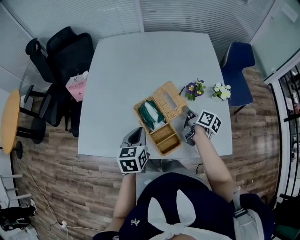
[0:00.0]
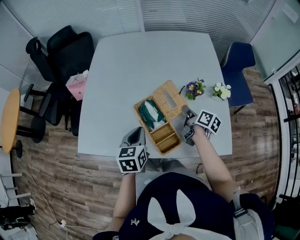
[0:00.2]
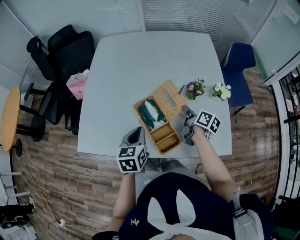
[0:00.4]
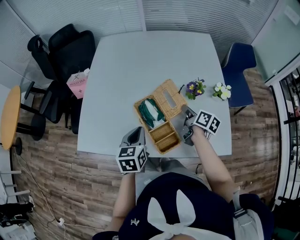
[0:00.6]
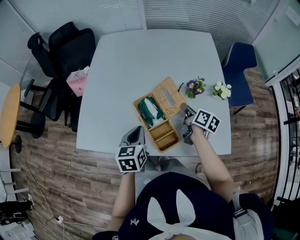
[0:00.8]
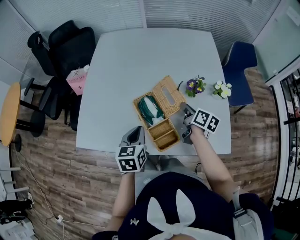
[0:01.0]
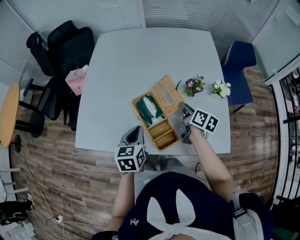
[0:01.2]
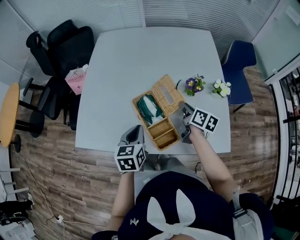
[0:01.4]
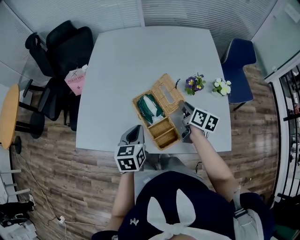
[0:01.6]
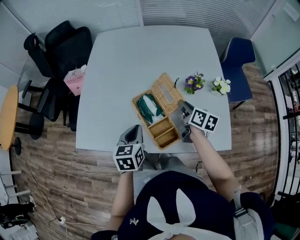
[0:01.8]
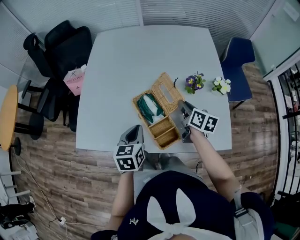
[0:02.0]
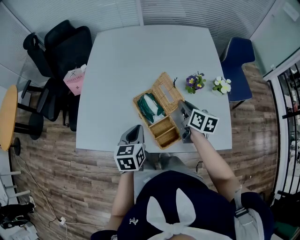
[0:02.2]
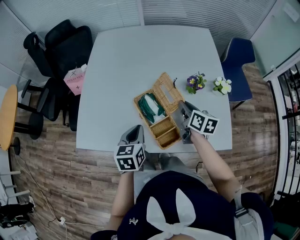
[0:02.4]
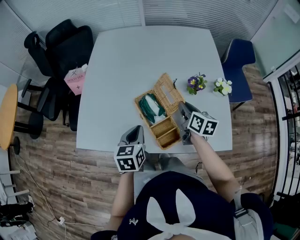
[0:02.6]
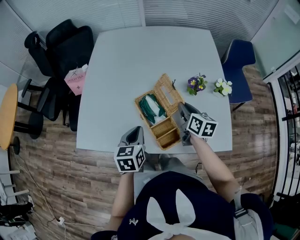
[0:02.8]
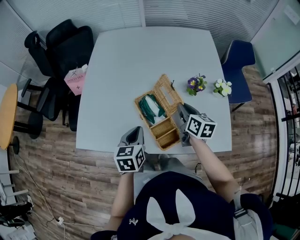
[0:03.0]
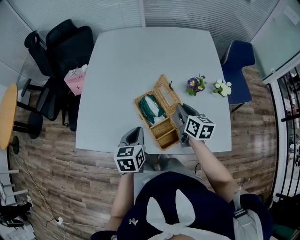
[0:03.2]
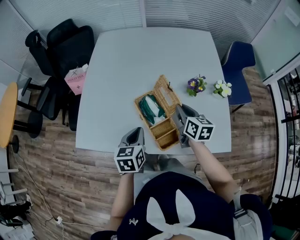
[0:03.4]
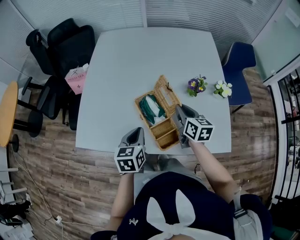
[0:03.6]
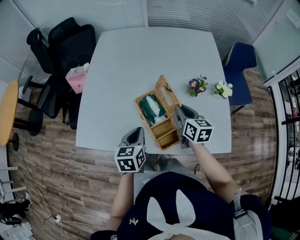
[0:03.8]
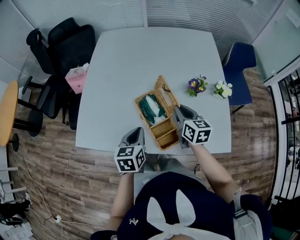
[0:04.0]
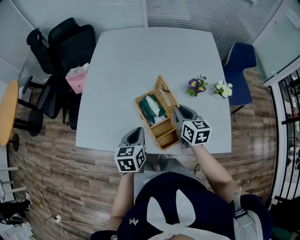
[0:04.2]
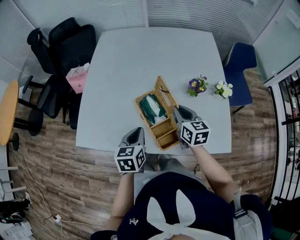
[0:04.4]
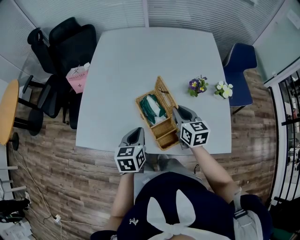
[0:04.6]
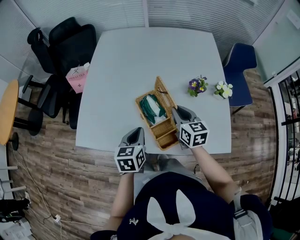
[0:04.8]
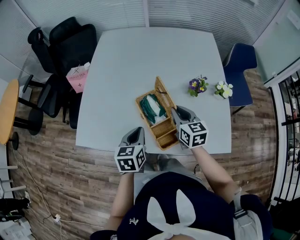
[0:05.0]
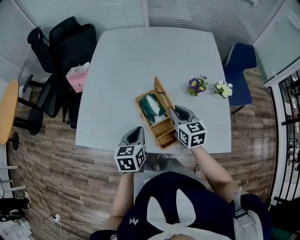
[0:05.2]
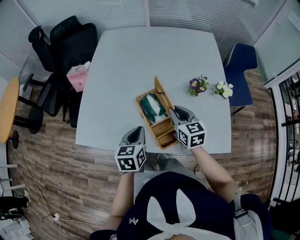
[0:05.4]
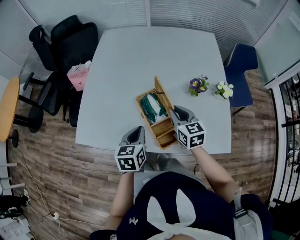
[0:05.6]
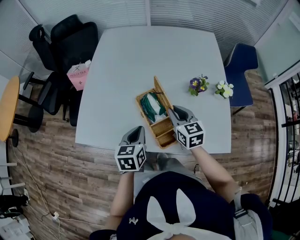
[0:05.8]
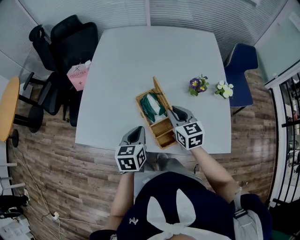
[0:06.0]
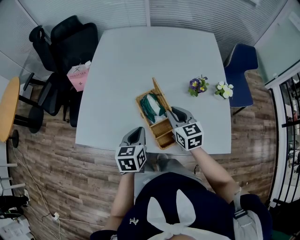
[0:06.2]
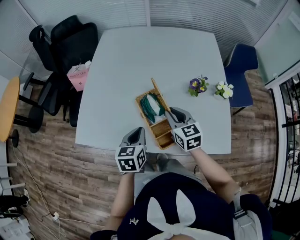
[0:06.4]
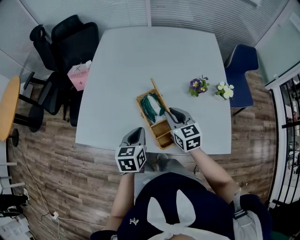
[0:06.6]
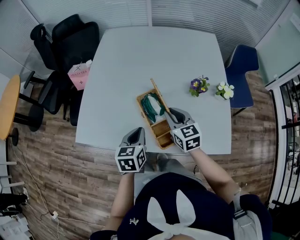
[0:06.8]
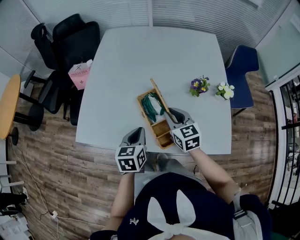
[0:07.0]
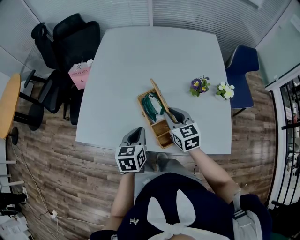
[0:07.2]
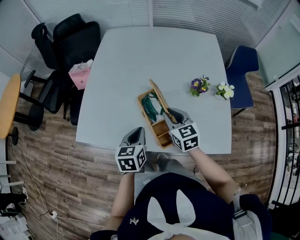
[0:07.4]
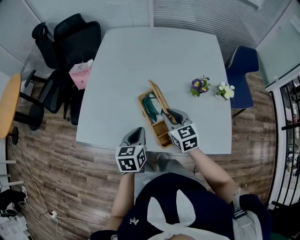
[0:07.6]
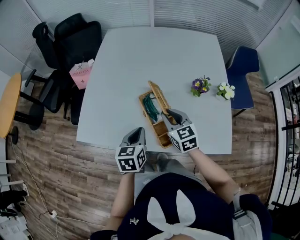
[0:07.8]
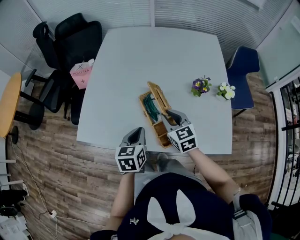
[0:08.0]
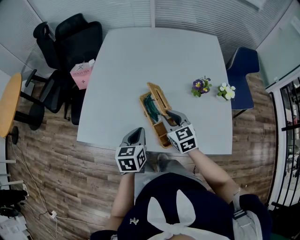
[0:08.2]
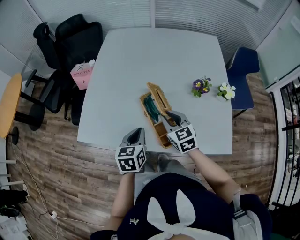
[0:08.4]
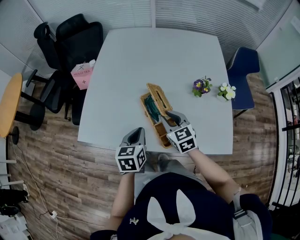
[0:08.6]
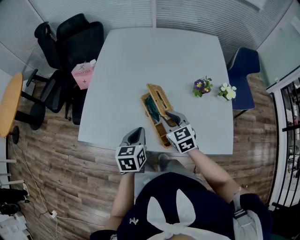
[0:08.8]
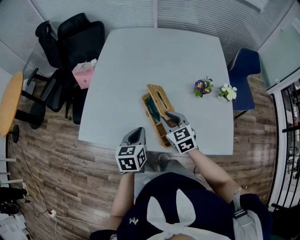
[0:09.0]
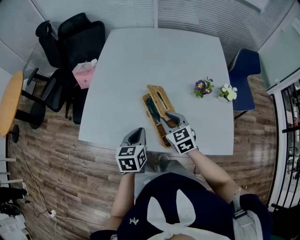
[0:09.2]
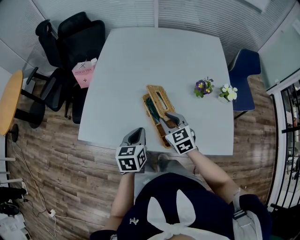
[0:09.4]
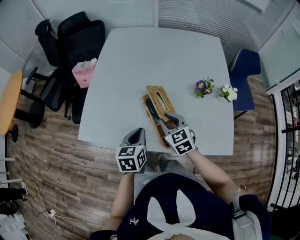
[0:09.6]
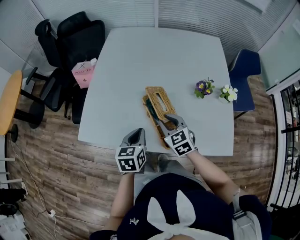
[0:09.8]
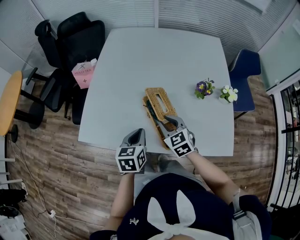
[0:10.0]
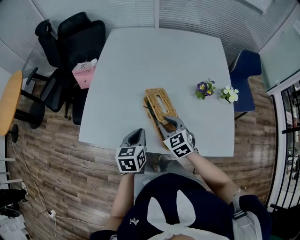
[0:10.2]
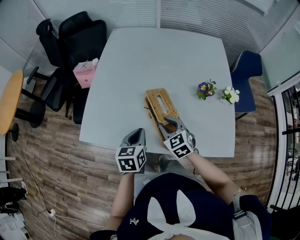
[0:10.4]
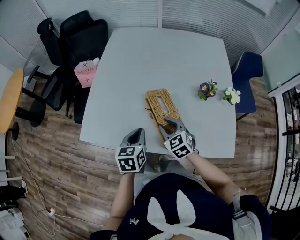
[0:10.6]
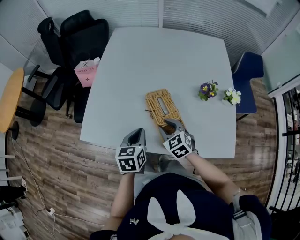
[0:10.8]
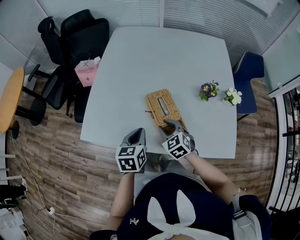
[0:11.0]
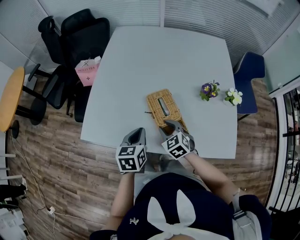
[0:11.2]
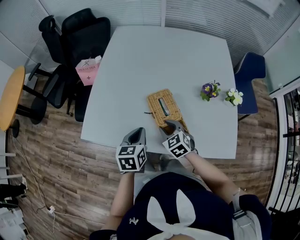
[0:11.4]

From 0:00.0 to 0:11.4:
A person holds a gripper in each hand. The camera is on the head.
From 0:00.0 to 0:01.4: The grippers stay close to where they were, moving slightly.
From 0:01.4 to 0:02.8: The grippers move only a little.
From 0:02.8 to 0:04.2: The grippers move only a little.
From 0:04.2 to 0:05.6: The grippers move only a little.
From 0:05.6 to 0:07.2: There are only small adjustments of the grippers.
From 0:07.2 to 0:08.6: There are only small adjustments of the grippers.
From 0:08.6 to 0:10.0: The grippers move only a little.
From 0:10.0 to 0:11.4: The right gripper moves downward, about 5 cm.

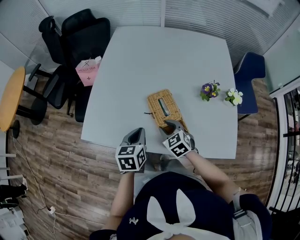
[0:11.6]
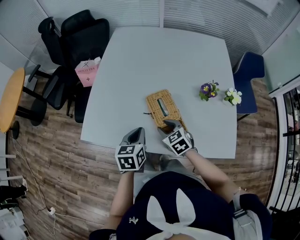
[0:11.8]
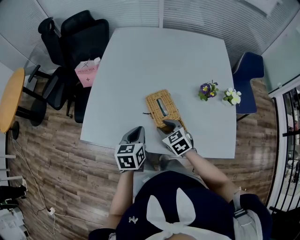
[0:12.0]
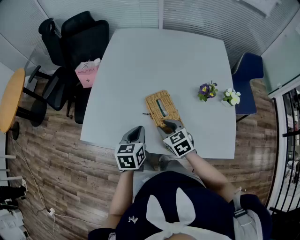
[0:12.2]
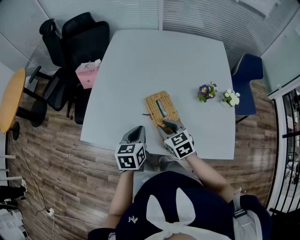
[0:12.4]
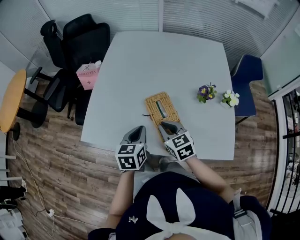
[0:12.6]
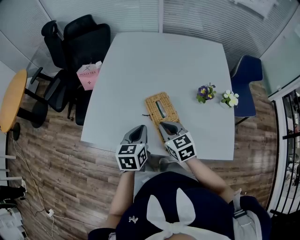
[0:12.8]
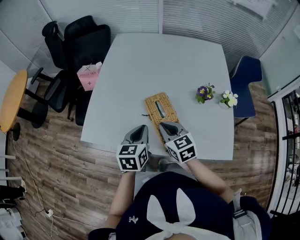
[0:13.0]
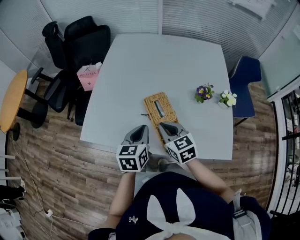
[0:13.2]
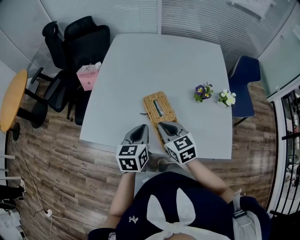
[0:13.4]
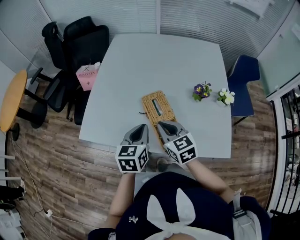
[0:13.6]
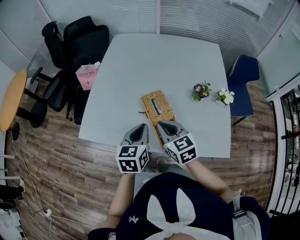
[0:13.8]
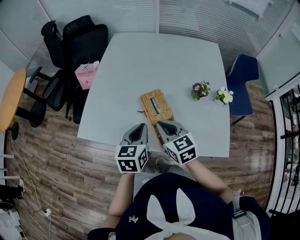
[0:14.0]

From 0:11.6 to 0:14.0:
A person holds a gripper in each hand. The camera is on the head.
From 0:11.6 to 0:12.8: The right gripper heads upward, covering roughly 10 cm, and closes.
From 0:12.8 to 0:14.0: The right gripper changes place by approximately 5 cm.

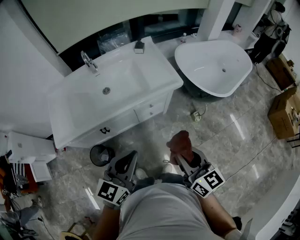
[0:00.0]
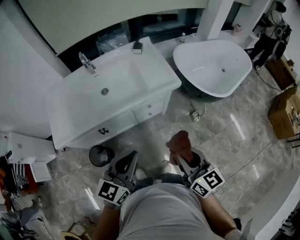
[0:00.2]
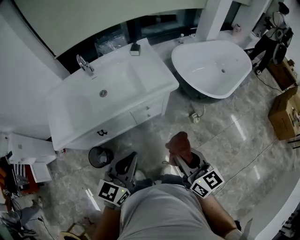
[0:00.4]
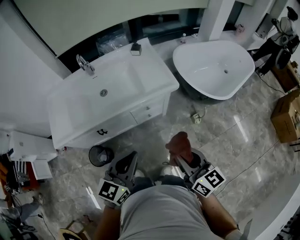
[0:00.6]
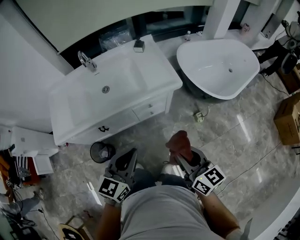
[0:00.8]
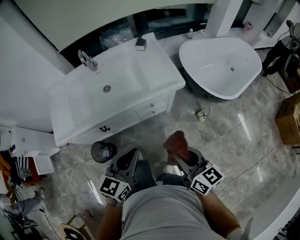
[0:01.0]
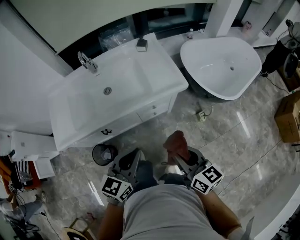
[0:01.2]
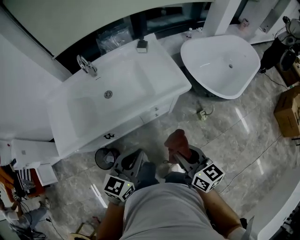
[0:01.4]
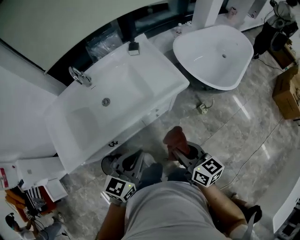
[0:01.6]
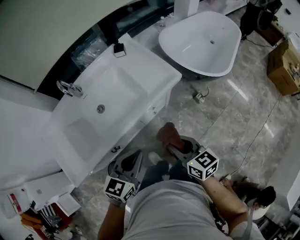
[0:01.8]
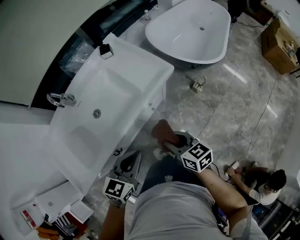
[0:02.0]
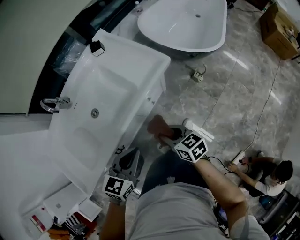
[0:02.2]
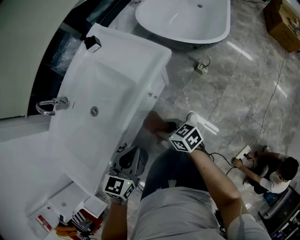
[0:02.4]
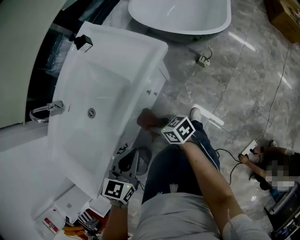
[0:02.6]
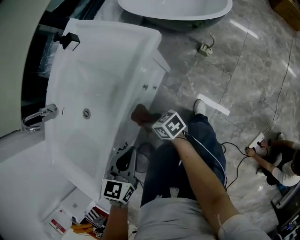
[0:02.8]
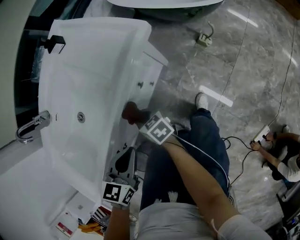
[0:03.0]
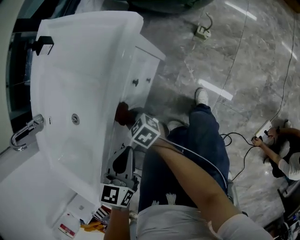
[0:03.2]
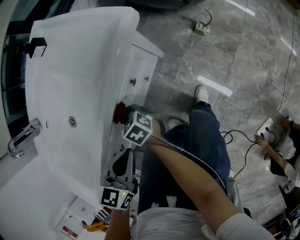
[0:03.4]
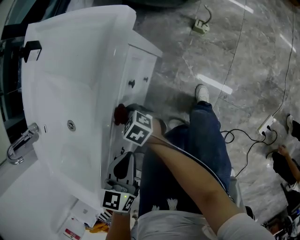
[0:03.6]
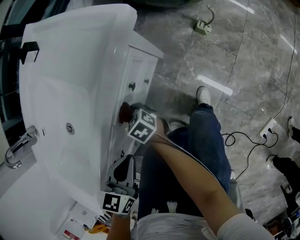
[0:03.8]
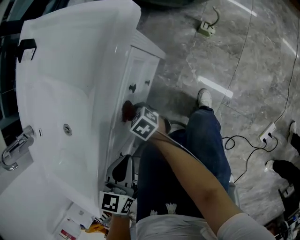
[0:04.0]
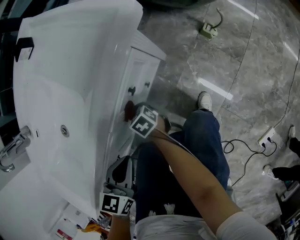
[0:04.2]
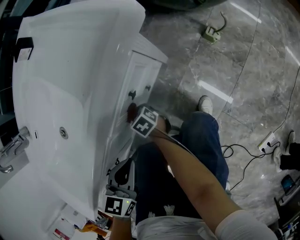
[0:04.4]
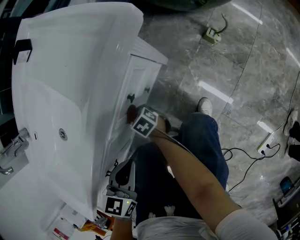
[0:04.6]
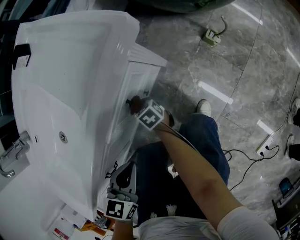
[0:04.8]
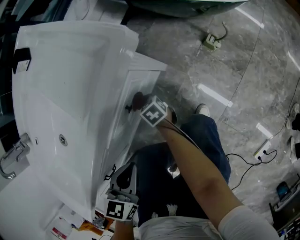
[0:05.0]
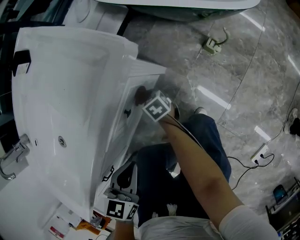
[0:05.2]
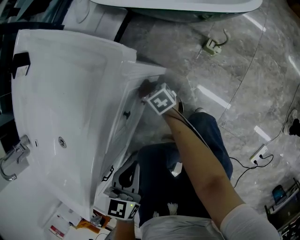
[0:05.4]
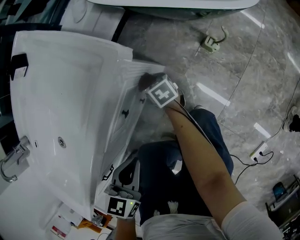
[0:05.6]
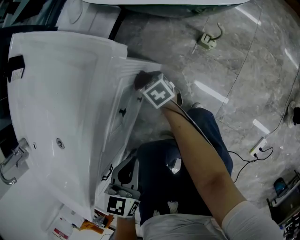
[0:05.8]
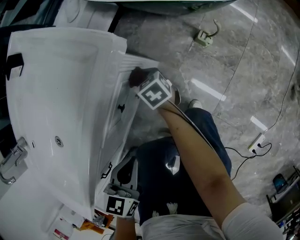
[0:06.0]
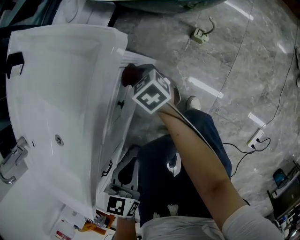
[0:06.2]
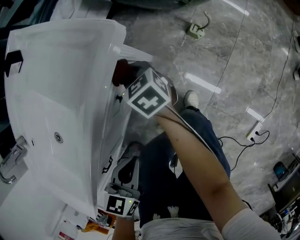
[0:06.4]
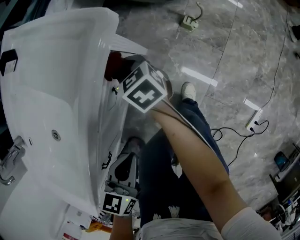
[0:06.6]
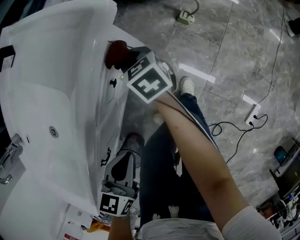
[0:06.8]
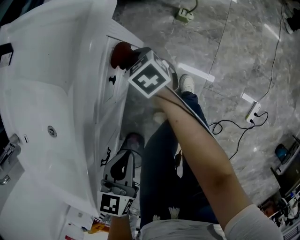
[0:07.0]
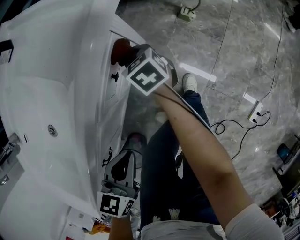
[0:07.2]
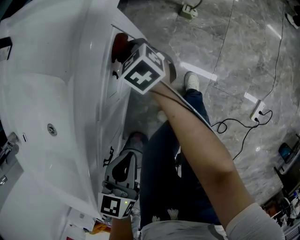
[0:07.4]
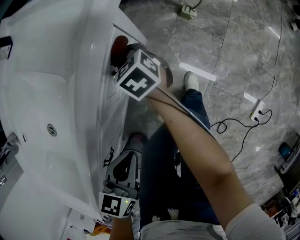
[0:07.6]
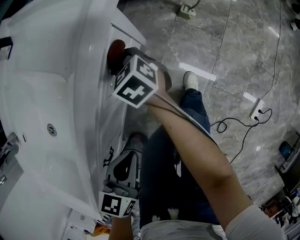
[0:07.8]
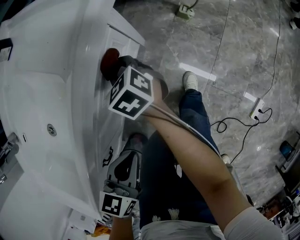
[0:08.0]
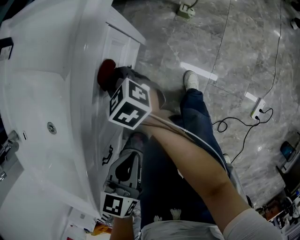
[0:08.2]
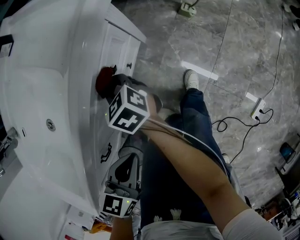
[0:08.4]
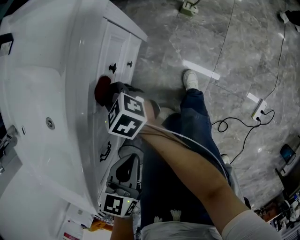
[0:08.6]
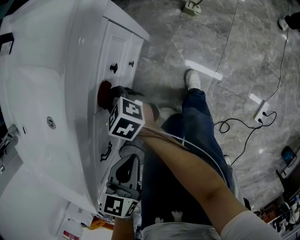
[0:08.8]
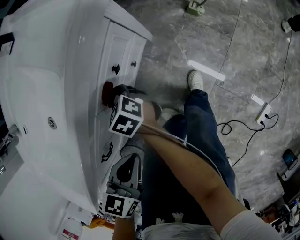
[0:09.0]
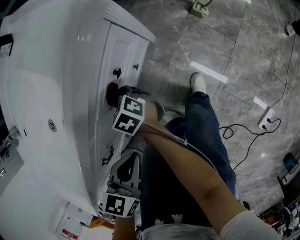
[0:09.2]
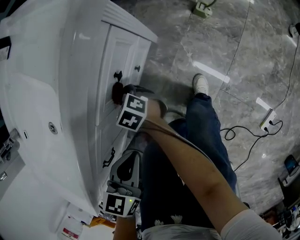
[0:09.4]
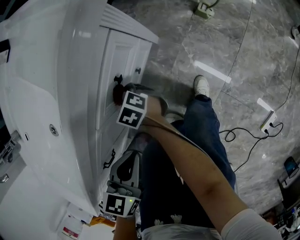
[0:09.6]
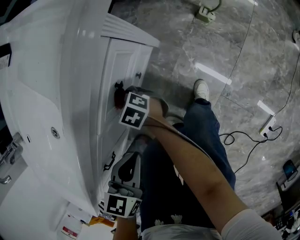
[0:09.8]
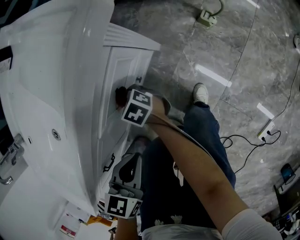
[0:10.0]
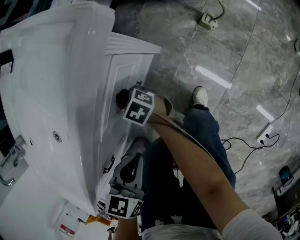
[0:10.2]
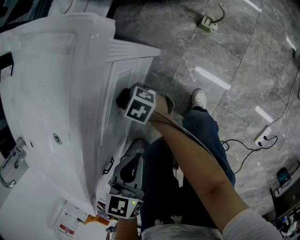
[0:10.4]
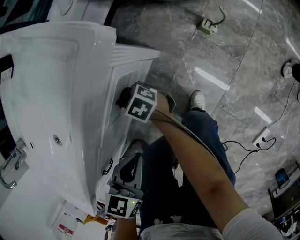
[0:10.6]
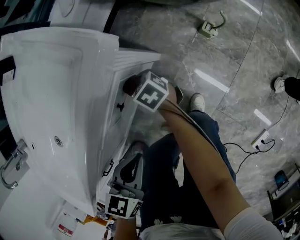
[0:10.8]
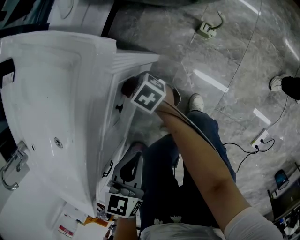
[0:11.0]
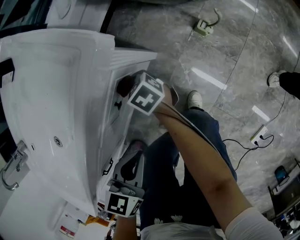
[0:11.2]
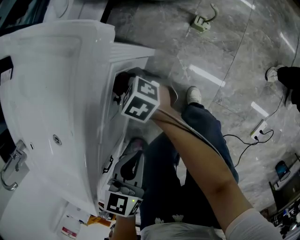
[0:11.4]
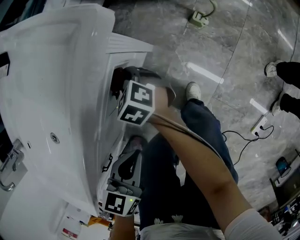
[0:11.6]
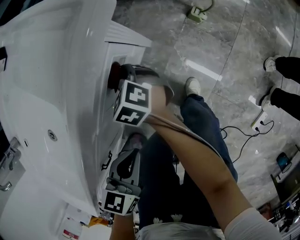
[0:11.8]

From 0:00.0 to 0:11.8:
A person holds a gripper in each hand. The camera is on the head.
From 0:00.0 to 0:01.4: Both grippers move forward and downward, roughly 10 cm.
From 0:01.4 to 0:03.0: The right gripper shifts about 40 cm downward and to the left, and turns by some 20 degrees. The left gripper heads downward, covering approximately 25 cm, and swivels approximately 30 degrees.
From 0:03.0 to 0:04.4: The left gripper goes about 10 cm downward. Meanwhile the right gripper shifts some 20 cm downward.
From 0:04.4 to 0:06.0: The right gripper is displaced to the right and forward by some 25 cm; the left gripper shifts about 10 cm to the right.
From 0:06.0 to 0:07.4: The right gripper shifts about 10 cm upward. Meanwhile the left gripper is displaced backward and to the left by about 10 cm.
From 0:07.4 to 0:08.8: The right gripper is displaced backward and to the left by some 20 cm.
From 0:08.8 to 0:10.4: The left gripper goes approximately 15 cm forward and to the right. Meanwhile the right gripper travels downward, to the right and forward by approximately 15 cm.
From 0:10.4 to 0:11.8: The right gripper moves upward, approximately 10 cm, and rotates about 20 degrees.
